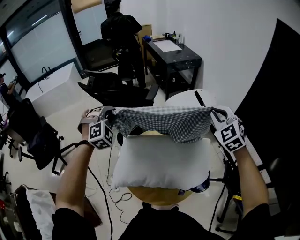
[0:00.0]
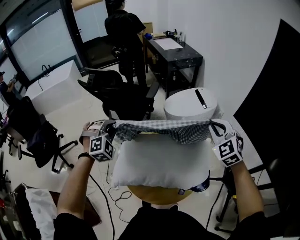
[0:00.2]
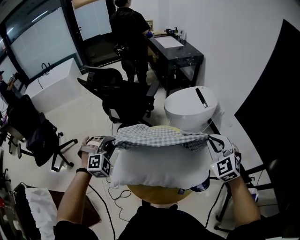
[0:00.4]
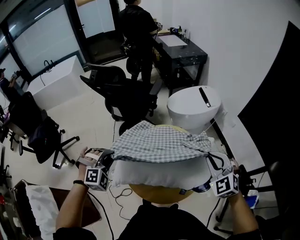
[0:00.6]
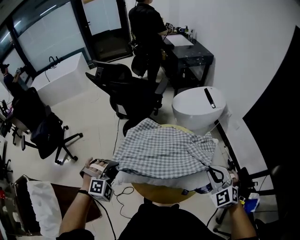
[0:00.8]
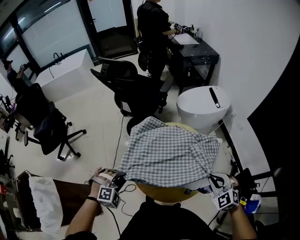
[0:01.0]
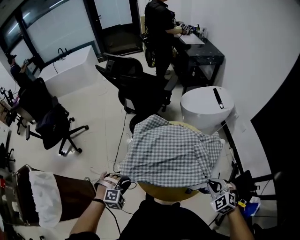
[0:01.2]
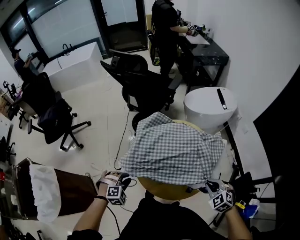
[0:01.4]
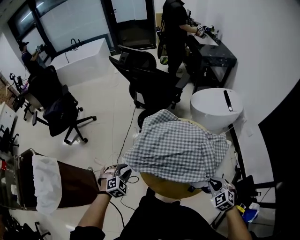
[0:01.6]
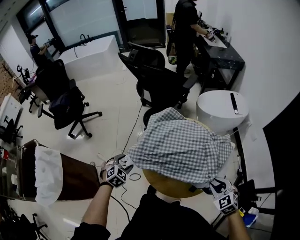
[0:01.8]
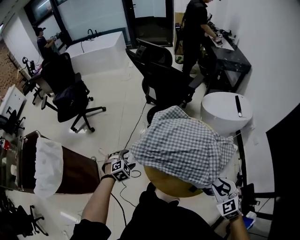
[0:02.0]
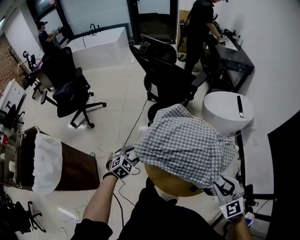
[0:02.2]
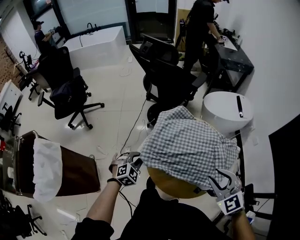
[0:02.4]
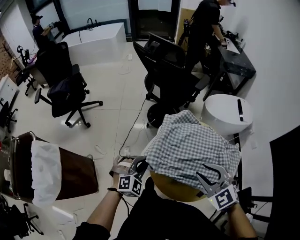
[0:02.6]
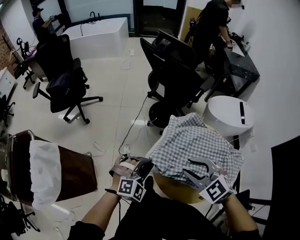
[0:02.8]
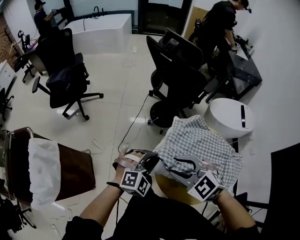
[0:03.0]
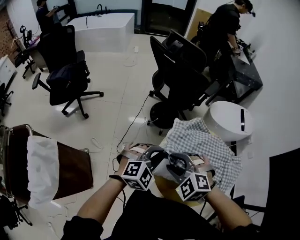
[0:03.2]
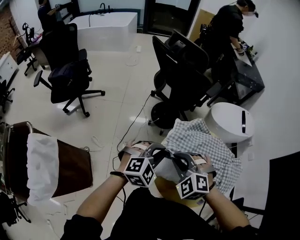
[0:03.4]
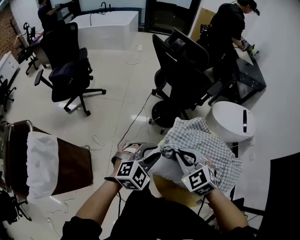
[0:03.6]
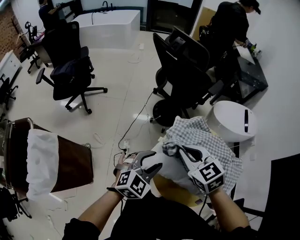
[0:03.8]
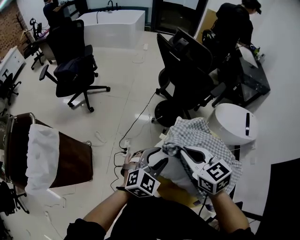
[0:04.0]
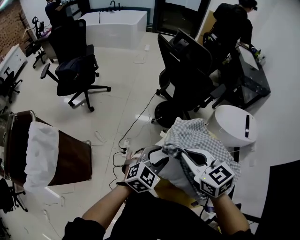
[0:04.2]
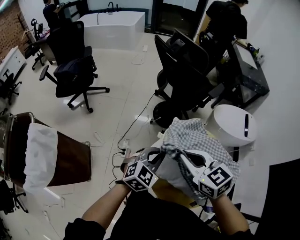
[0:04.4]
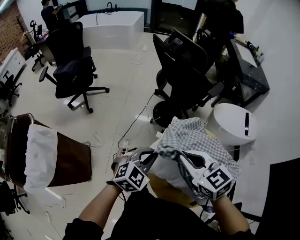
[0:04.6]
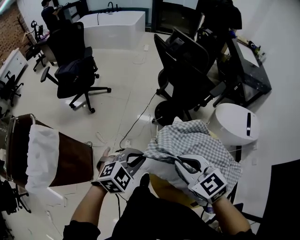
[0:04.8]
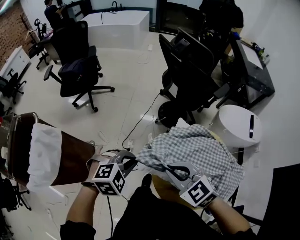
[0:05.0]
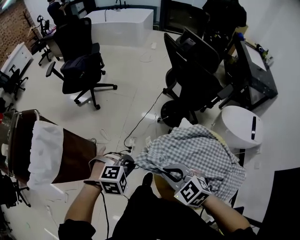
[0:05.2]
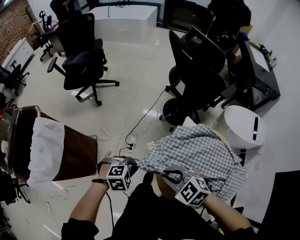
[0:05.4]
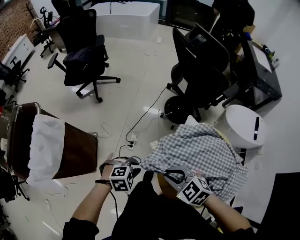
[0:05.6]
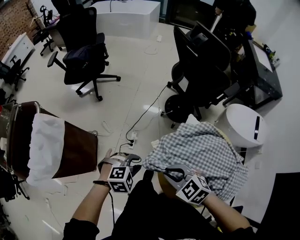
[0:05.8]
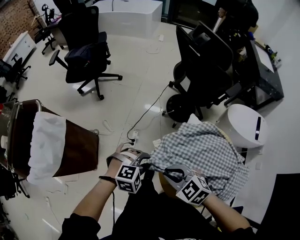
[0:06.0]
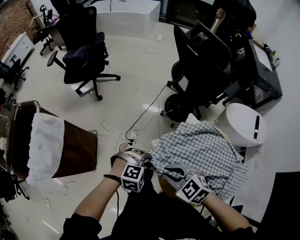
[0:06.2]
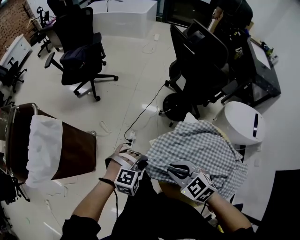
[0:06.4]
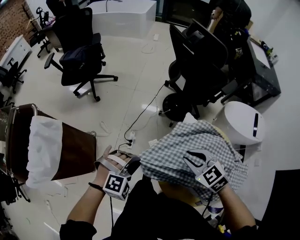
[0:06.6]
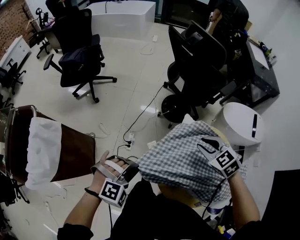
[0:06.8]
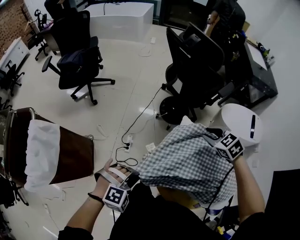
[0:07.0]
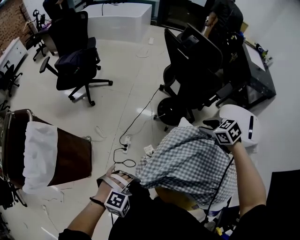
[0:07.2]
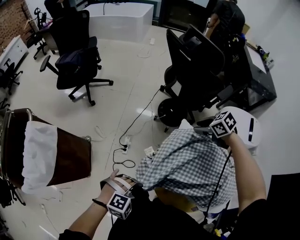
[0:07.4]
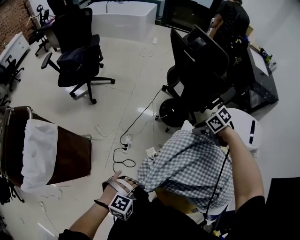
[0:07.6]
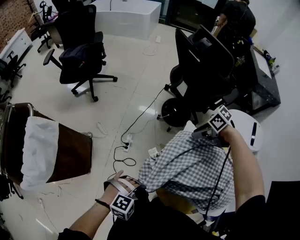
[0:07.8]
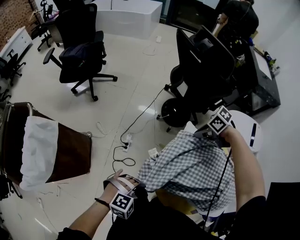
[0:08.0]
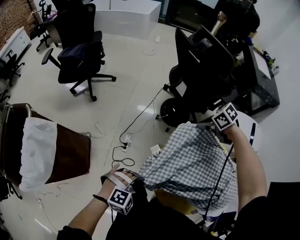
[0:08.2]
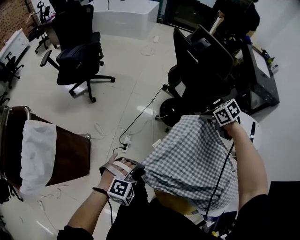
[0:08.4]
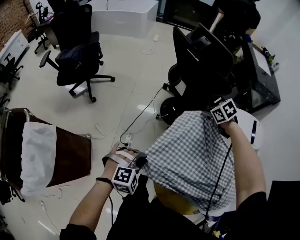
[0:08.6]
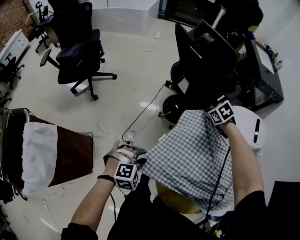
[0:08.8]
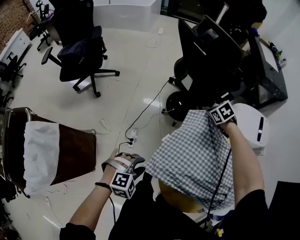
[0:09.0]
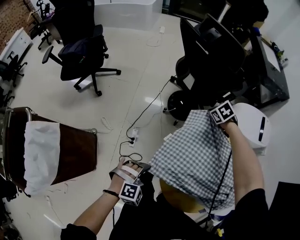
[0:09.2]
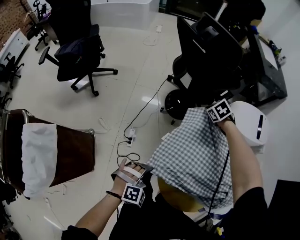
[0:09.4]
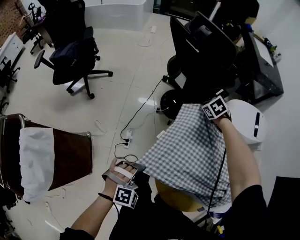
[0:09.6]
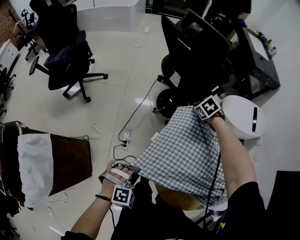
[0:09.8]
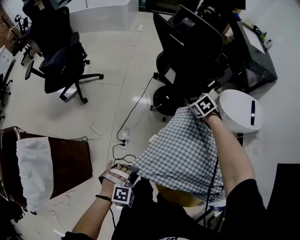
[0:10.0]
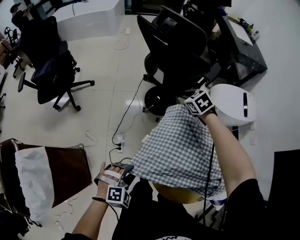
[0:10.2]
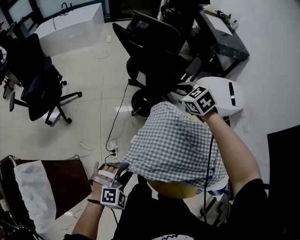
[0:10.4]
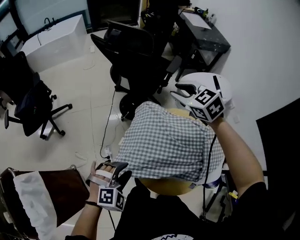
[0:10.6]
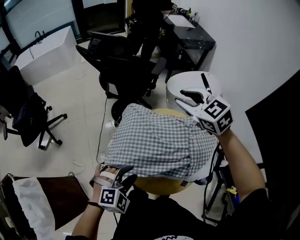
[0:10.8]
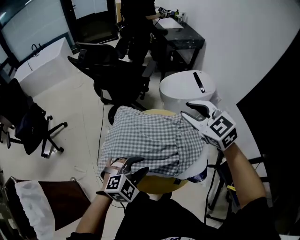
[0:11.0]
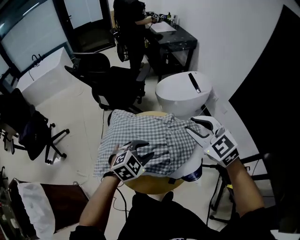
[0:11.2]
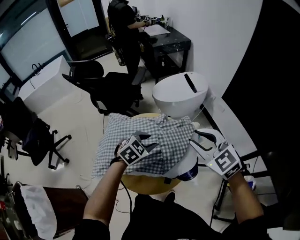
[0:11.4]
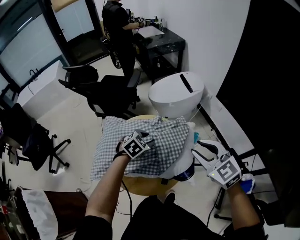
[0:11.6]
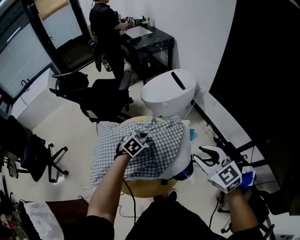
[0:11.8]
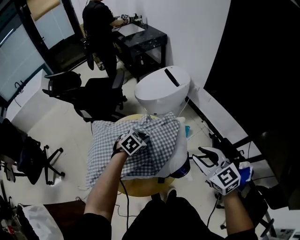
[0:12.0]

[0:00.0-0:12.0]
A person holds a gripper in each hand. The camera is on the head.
0:00.0 to 0:01.6: The right gripper moves downward and backward, about 40 cm, and changes its angle by about 30 degrees; the left gripper moves backward and downward, approximately 40 cm, and rotates some 40 degrees.
0:01.6 to 0:03.0: The left gripper goes roughly 15 cm upward and forward, rotates some 20 degrees, and opens and closes again, while the right gripper goes approximately 40 cm to the left and forward, turns by some 40 degrees, and opens up.
0:03.0 to 0:04.4: The left gripper changes place by about 5 cm, swivels about 30 degrees, and opens and closes again. Meanwhile the right gripper is displaced to the right and forward by approximately 10 cm, turns by approximately 30 degrees, and closes its fingers.
0:04.4 to 0:06.0: The left gripper changes place by roughly 15 cm, and swivels about 40 degrees; the right gripper moves some 20 cm, and swivels some 30 degrees.
0:06.0 to 0:07.6: The right gripper changes place by about 30 cm, swivels some 40 degrees, and opens. Meanwhile the left gripper reaches some 5 cm upward, then returns, and closes its fingers.
0:07.6 to 0:09.0: The left gripper moves some 15 cm, and opens its fingers. Meanwhile the right gripper moves about 15 cm, turns by roughly 30 degrees, and closes its fingers.
0:09.0 to 0:10.4: The right gripper travels upward by approximately 15 cm, swivels some 30 degrees, and opens; the left gripper ends up roughly 5 cm from where it was, and closes, then opens again.
0:10.4 to 0:12.0: The left gripper reaches roughly 10 cm upward, then returns, and turns by approximately 30 degrees, while the right gripper shifts by some 60 cm, and rotates approximately 40 degrees.

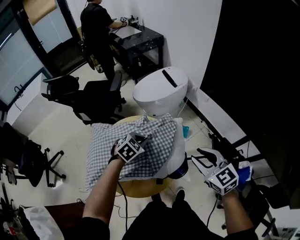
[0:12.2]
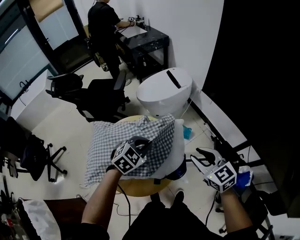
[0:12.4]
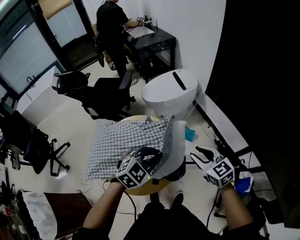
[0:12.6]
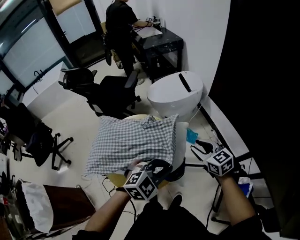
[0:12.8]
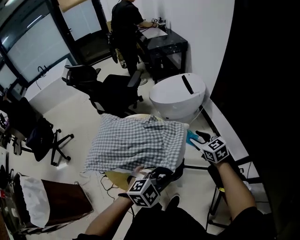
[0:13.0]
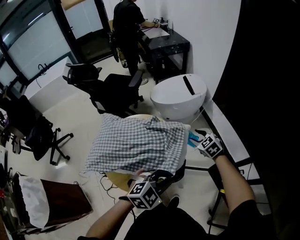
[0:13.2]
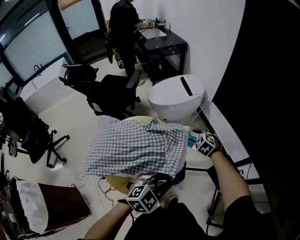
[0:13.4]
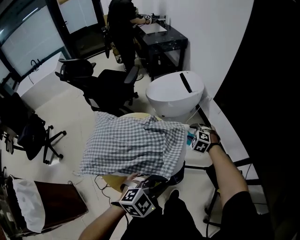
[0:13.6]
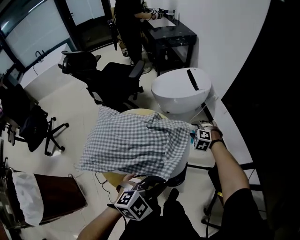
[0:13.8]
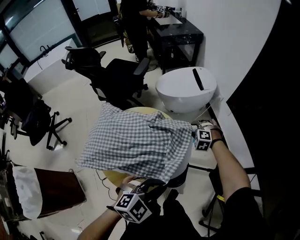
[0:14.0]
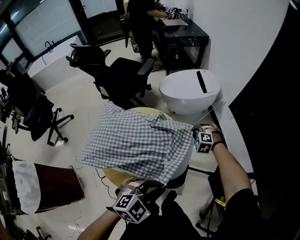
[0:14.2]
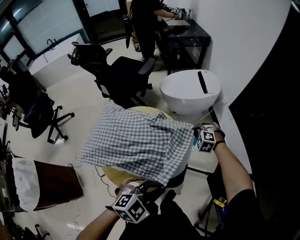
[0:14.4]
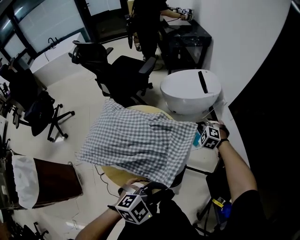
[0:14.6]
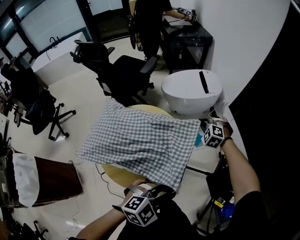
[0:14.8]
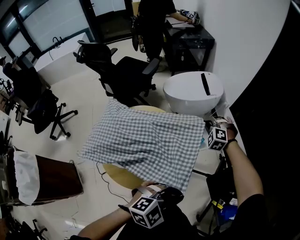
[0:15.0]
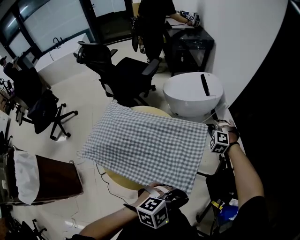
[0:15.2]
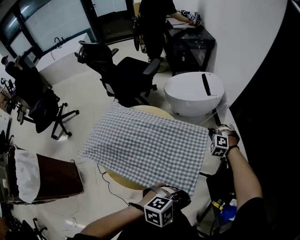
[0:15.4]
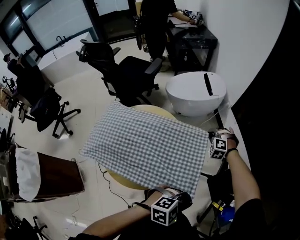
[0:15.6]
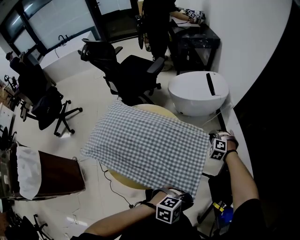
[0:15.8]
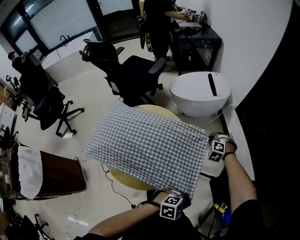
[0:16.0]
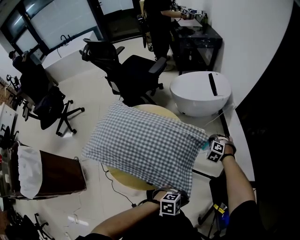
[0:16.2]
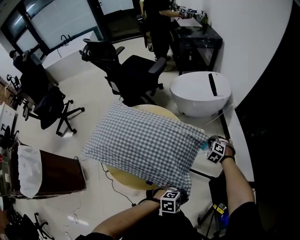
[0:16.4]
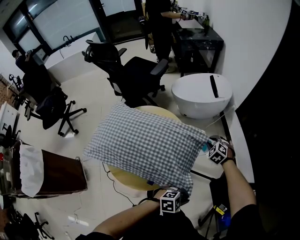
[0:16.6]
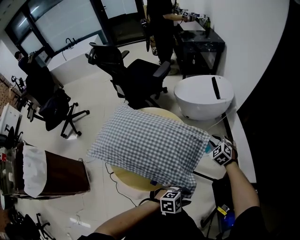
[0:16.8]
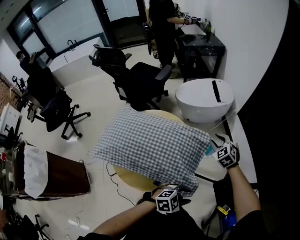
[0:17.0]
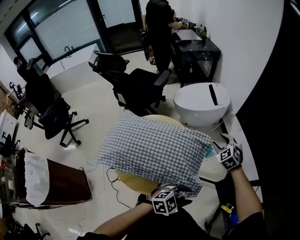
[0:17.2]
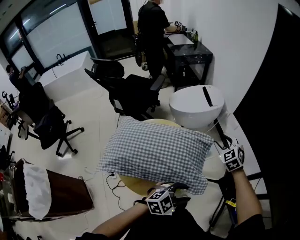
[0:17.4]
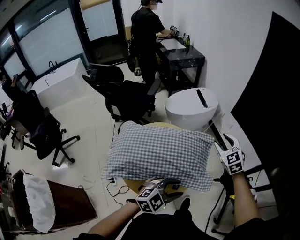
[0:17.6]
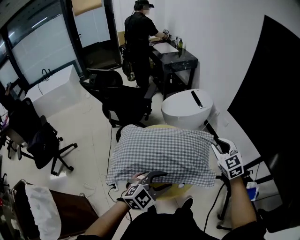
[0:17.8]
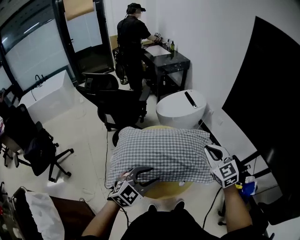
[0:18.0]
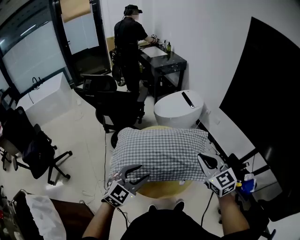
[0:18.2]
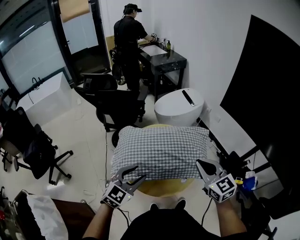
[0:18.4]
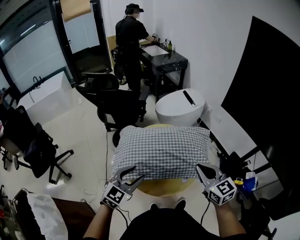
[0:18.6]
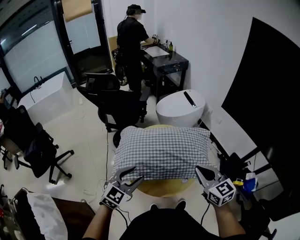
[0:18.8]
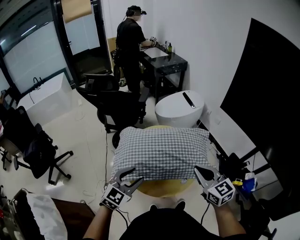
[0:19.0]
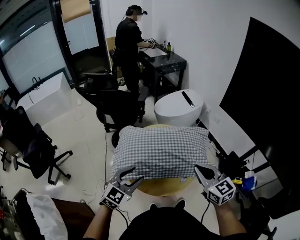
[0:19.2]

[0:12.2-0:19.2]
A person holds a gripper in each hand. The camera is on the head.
0:12.2 to 0:13.6: The right gripper is displaced downward and forward by approximately 30 cm, and points its fingers approximately 30 degrees further downward; the left gripper shifts approximately 25 cm backward, to the right and upward.
0:13.6 to 0:15.0: The left gripper travels to the right by roughly 10 cm, while the right gripper shifts about 5 cm forward, rotates about 20 degrees, and closes up.
0:15.0 to 0:16.4: The left gripper moves downward, roughly 20 cm, and turns by roughly 20 degrees. Meanwhile the right gripper travels downward and to the right by about 15 cm.
0:16.4 to 0:17.8: The right gripper goes some 35 cm upward and backward, points its fingers some 40 degrees further upward, and opens up; the left gripper moves to the left and upward, some 35 cm, turns by some 30 degrees, and opens.
0:17.8 to 0:19.2: The right gripper goes some 20 cm backward and to the left, rotates about 20 degrees, and closes; the left gripper shifts about 15 cm to the left.

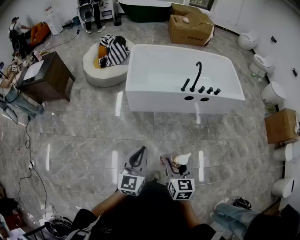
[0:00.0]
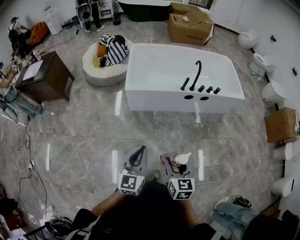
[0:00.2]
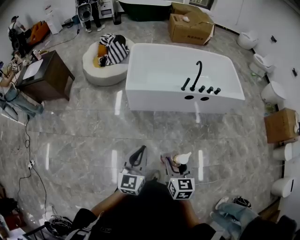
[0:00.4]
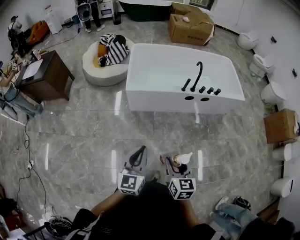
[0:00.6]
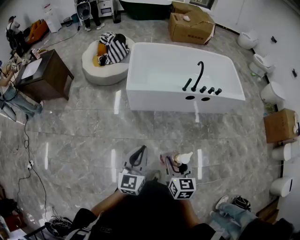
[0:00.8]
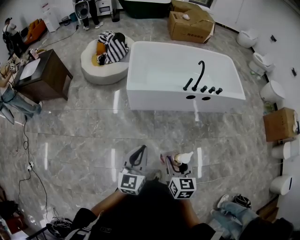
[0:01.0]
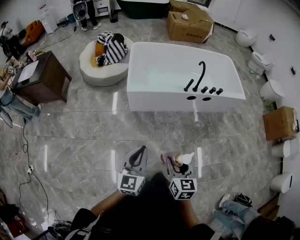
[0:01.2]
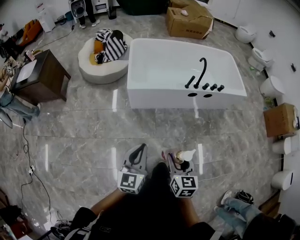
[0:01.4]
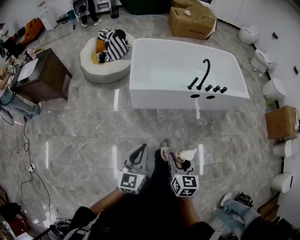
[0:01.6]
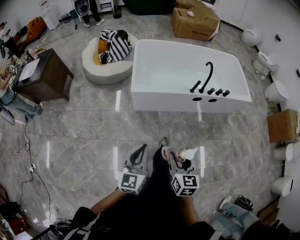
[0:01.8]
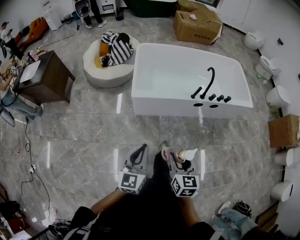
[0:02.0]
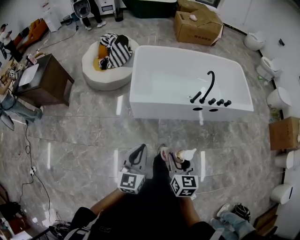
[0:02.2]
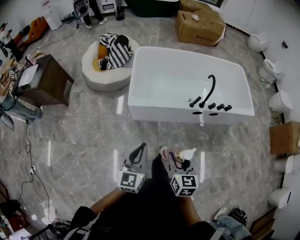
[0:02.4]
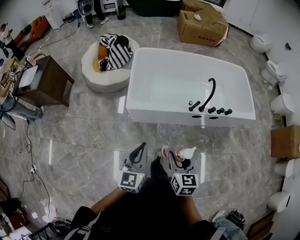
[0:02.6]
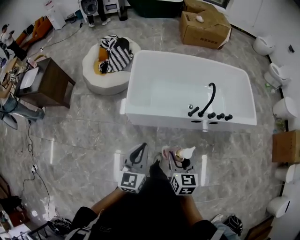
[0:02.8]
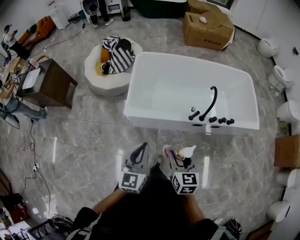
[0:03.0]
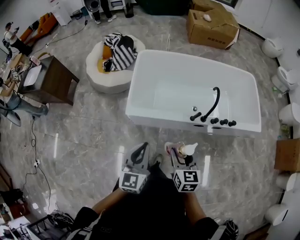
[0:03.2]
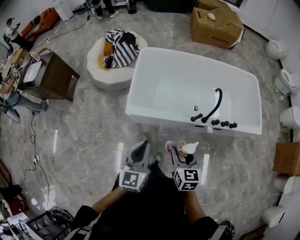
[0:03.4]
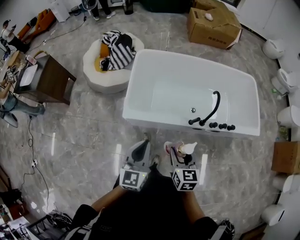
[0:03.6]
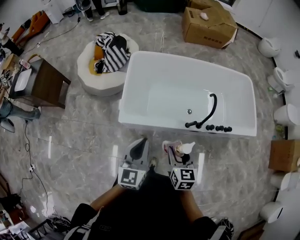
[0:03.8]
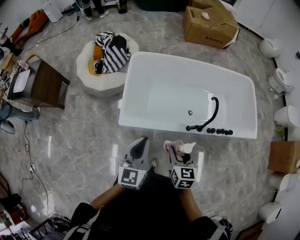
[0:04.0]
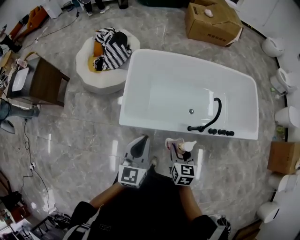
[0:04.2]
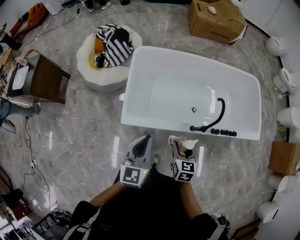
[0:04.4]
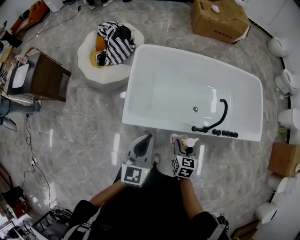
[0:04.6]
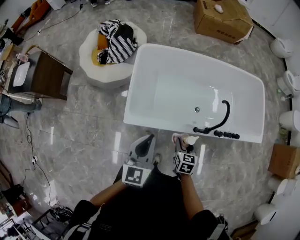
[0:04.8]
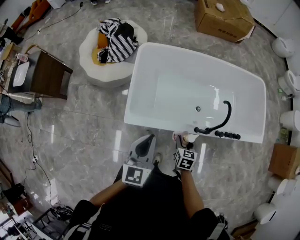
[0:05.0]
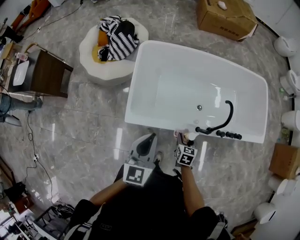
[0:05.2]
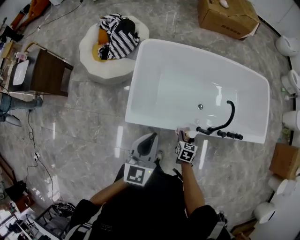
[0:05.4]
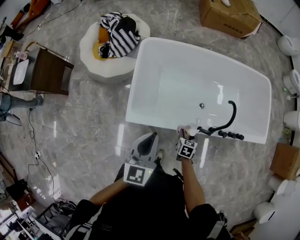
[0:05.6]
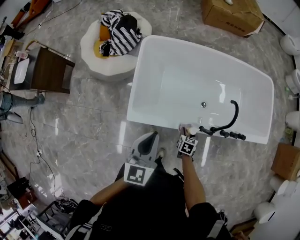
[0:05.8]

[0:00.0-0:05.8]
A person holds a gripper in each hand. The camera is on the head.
0:00.0 to 0:01.4: Both grippers move to the left and forward, about 10 cm.
0:01.4 to 0:02.8: Both grippers travel together forward, some 30 cm.
0:02.8 to 0:04.4: The right gripper heads forward and downward, covering some 25 cm; the left gripper goes roughly 25 cm forward.
0:04.4 to 0:05.8: The left gripper goes some 5 cm forward; the right gripper heads downward and forward, covering approximately 25 cm.
